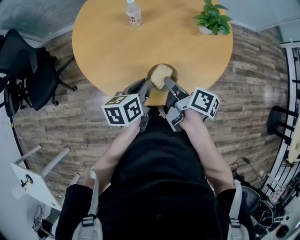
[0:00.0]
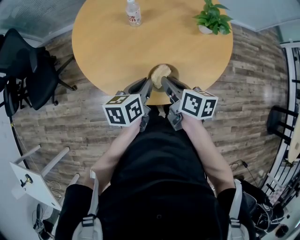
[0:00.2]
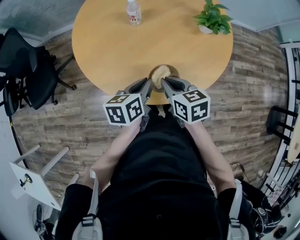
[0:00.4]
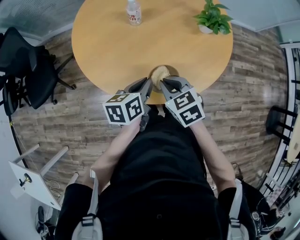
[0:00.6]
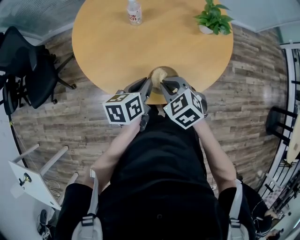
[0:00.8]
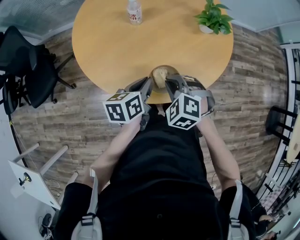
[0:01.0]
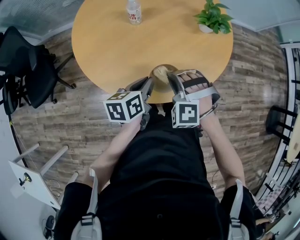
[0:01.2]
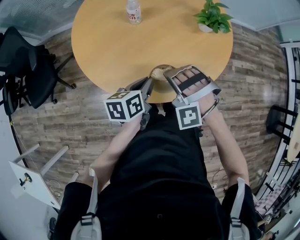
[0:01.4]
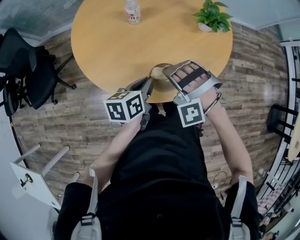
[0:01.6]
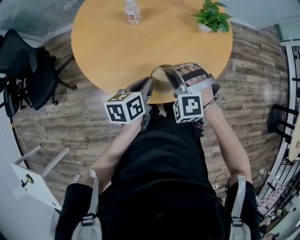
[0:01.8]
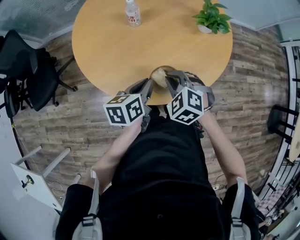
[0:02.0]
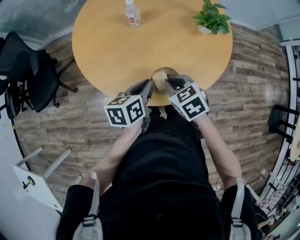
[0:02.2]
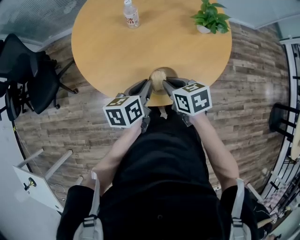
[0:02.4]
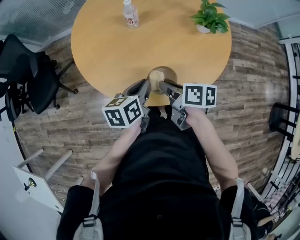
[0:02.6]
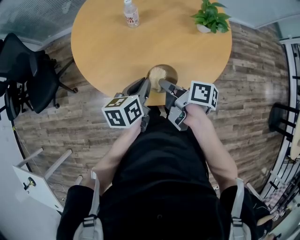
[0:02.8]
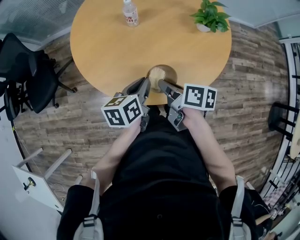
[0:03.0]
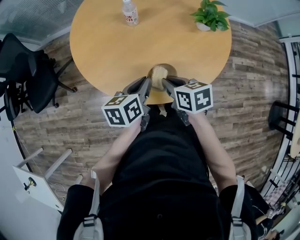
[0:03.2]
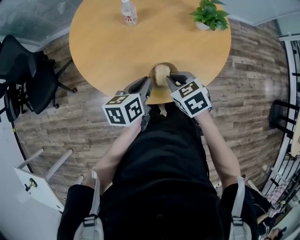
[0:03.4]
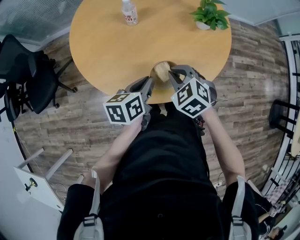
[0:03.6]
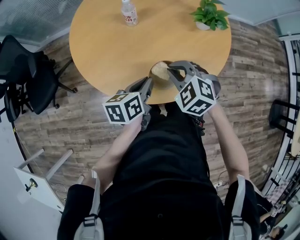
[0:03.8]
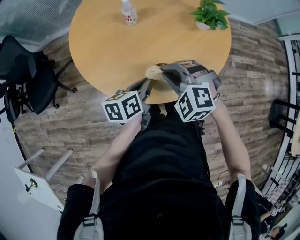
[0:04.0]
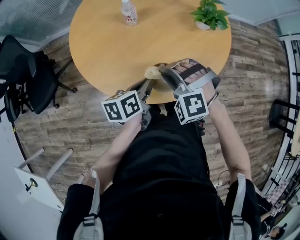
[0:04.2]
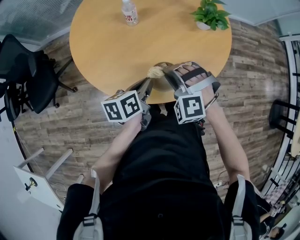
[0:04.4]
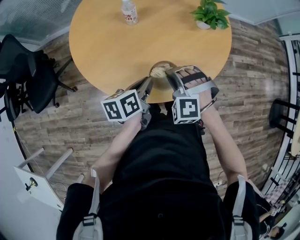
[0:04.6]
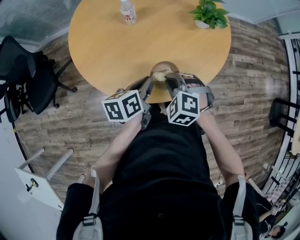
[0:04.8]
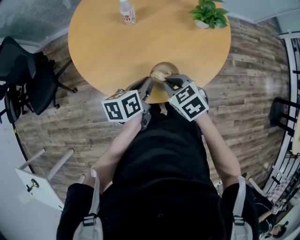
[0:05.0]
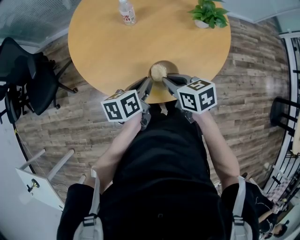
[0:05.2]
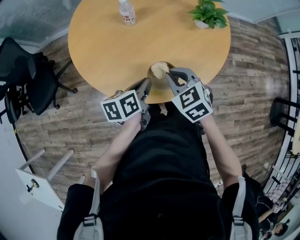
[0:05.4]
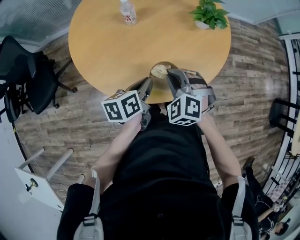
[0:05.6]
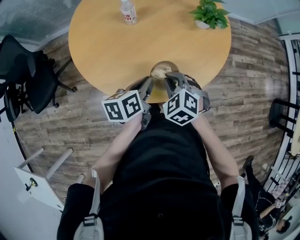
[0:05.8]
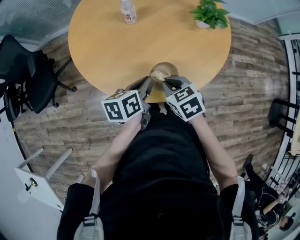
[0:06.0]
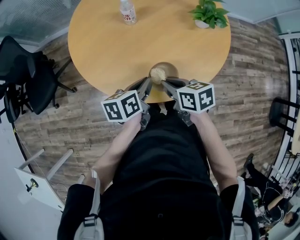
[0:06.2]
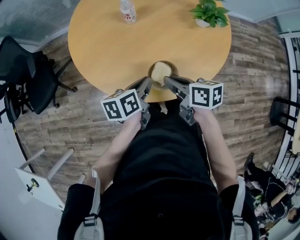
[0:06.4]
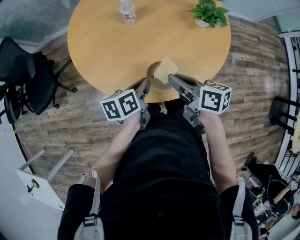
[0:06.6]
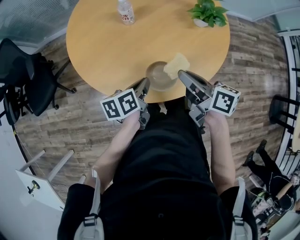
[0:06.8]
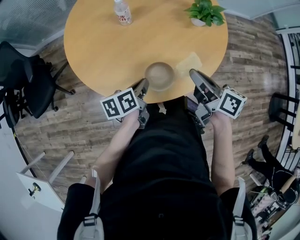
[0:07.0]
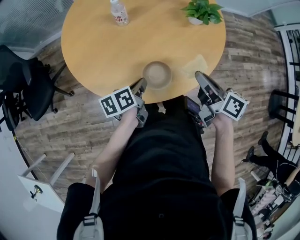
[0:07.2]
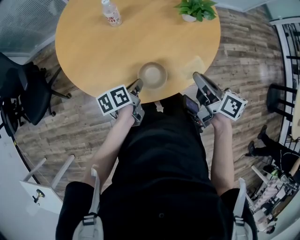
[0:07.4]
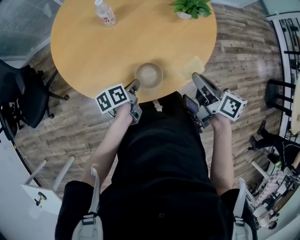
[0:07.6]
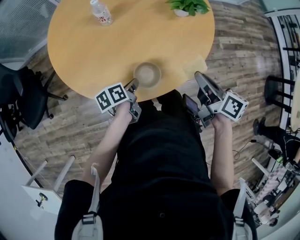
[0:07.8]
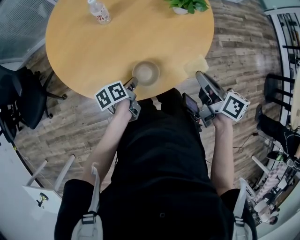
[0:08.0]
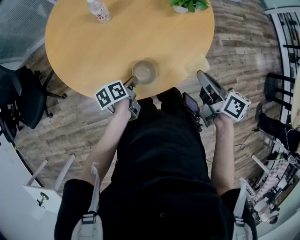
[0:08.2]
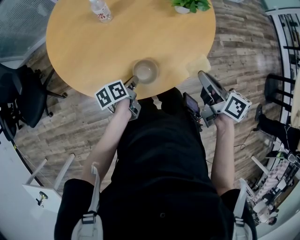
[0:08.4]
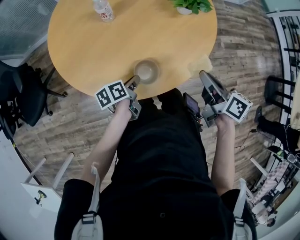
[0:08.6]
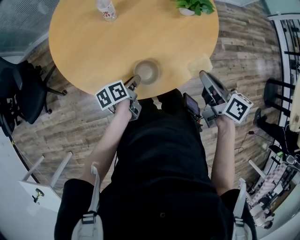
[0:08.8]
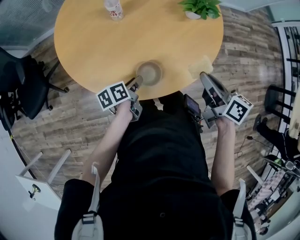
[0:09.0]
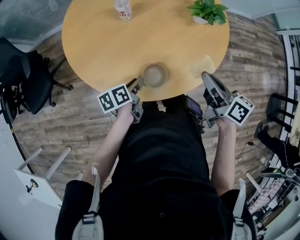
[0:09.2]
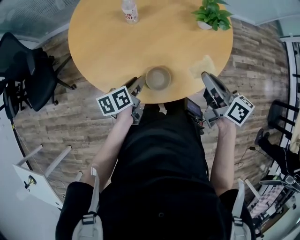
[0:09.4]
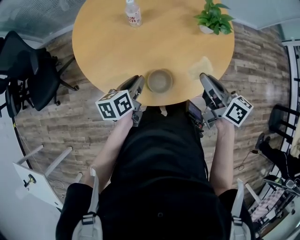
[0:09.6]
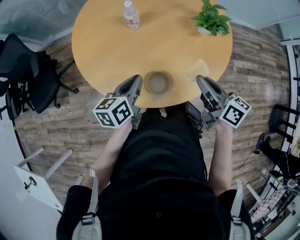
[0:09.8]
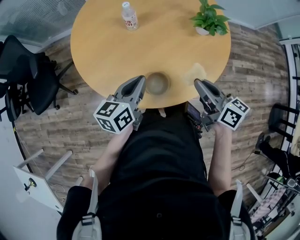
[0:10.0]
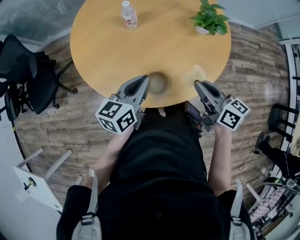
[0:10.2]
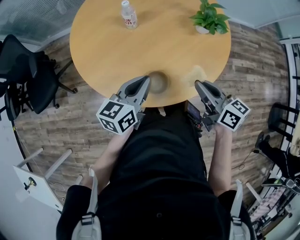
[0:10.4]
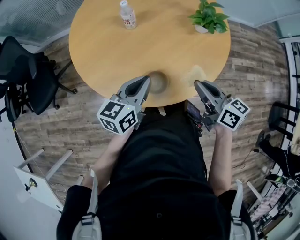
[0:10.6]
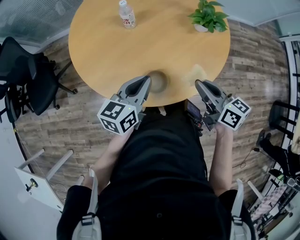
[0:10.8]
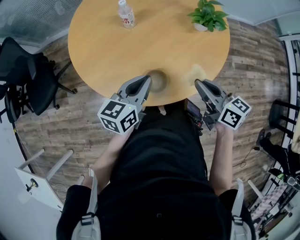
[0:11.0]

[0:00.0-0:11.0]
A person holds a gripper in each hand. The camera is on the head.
0:00.0 to 0:01.6: The right gripper rotates around the line of its fingers by approximately 160 degrees, counterclockwise from behind.
0:01.6 to 0:03.2: The right gripper rolls clockwise, seen from behind, by roughly 120 degrees.
0:03.2 to 0:04.8: The right gripper rotates around the line of its fingers by roughly 70 degrees, counterclockwise from behind.
0:04.8 to 0:06.2: The right gripper twists some 70 degrees clockwise, seen from behind.
0:06.2 to 0:07.8: The right gripper moves to the right, roughly 20 cm, and changes its angle by approximately 40 degrees, while the left gripper goes about 10 cm downward, and rotates approximately 20 degrees.
0:07.8 to 0:09.4: The two grippers go approximately 5 cm to the left. The left gripper opens its fingers.
0:09.4 to 0:11.0: The left gripper shifts some 15 cm upward and to the right, turns by about 40 degrees, and closes.

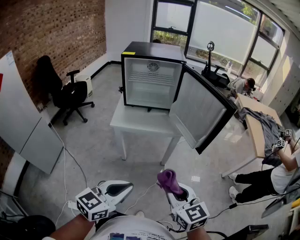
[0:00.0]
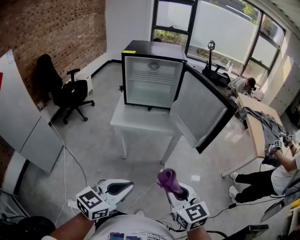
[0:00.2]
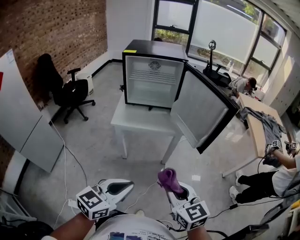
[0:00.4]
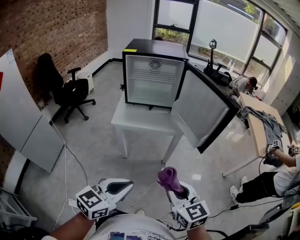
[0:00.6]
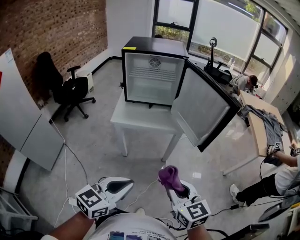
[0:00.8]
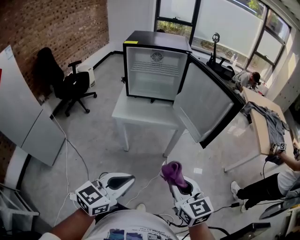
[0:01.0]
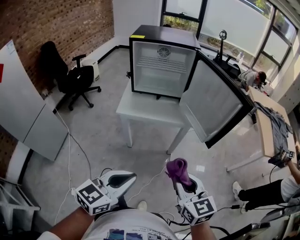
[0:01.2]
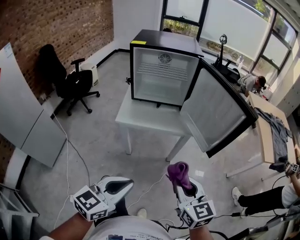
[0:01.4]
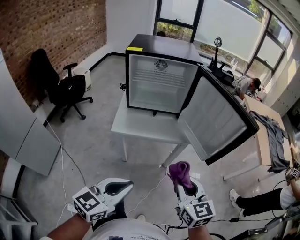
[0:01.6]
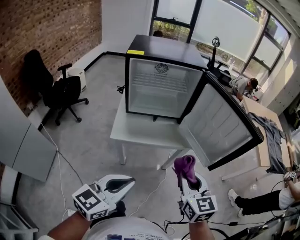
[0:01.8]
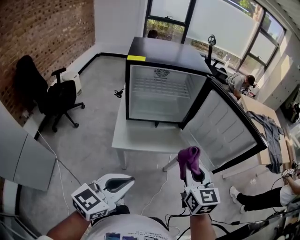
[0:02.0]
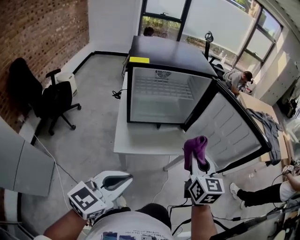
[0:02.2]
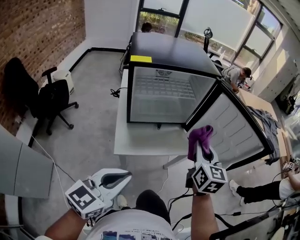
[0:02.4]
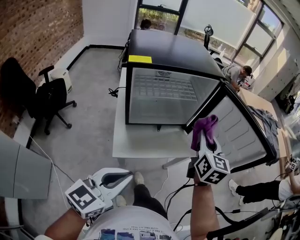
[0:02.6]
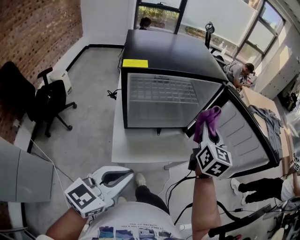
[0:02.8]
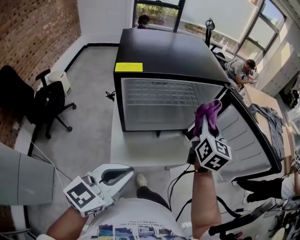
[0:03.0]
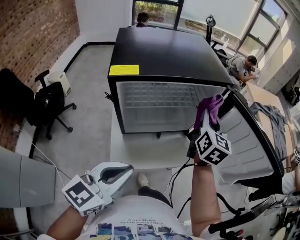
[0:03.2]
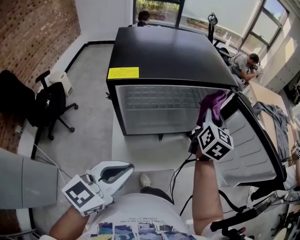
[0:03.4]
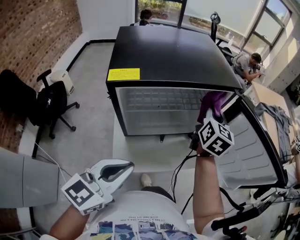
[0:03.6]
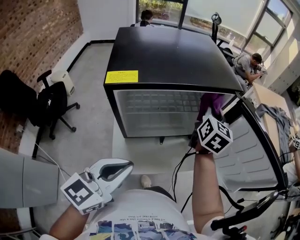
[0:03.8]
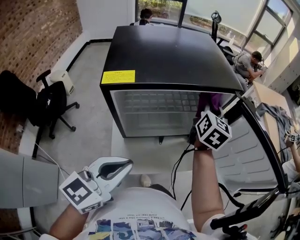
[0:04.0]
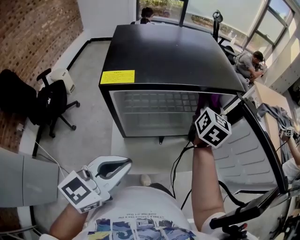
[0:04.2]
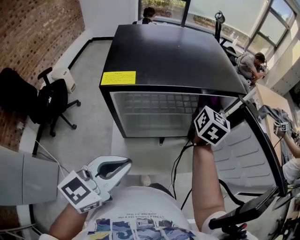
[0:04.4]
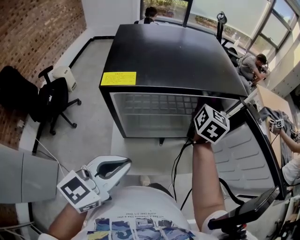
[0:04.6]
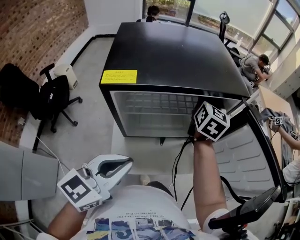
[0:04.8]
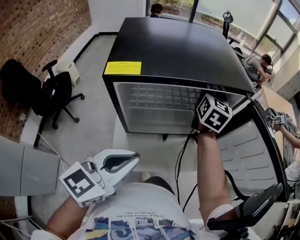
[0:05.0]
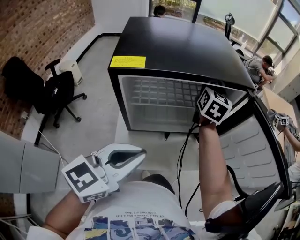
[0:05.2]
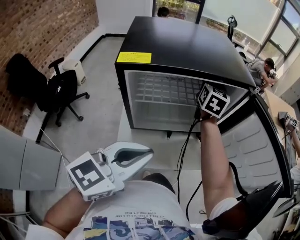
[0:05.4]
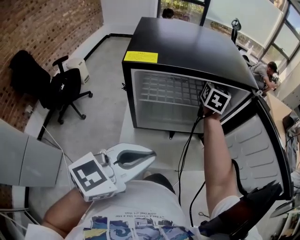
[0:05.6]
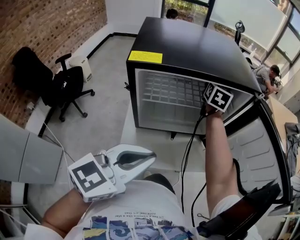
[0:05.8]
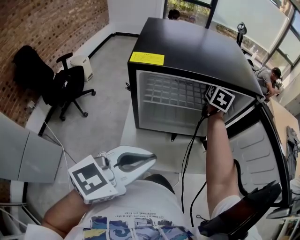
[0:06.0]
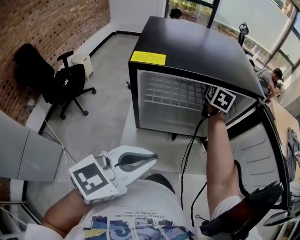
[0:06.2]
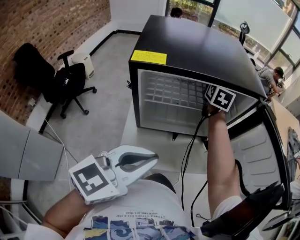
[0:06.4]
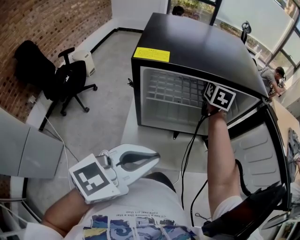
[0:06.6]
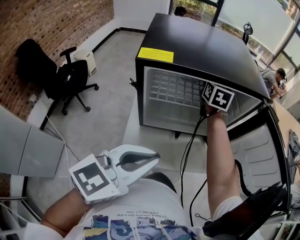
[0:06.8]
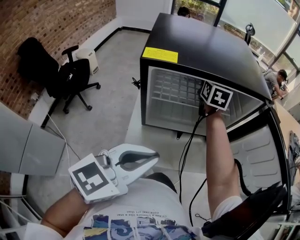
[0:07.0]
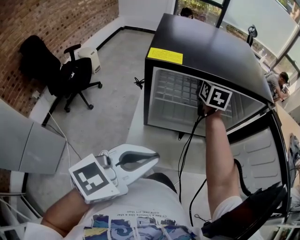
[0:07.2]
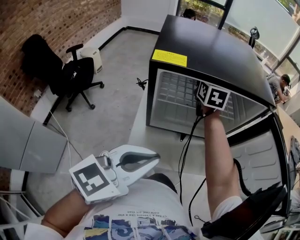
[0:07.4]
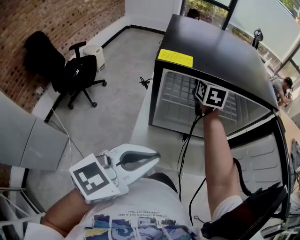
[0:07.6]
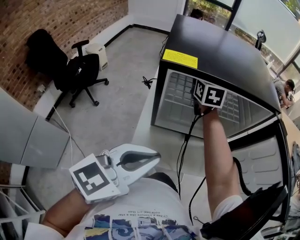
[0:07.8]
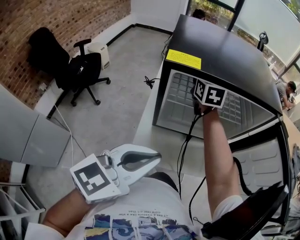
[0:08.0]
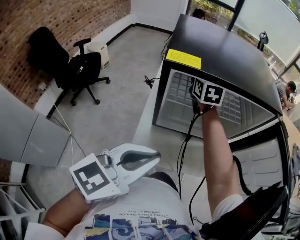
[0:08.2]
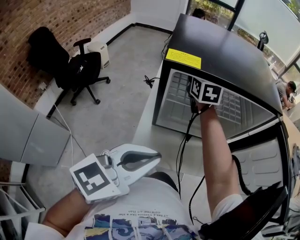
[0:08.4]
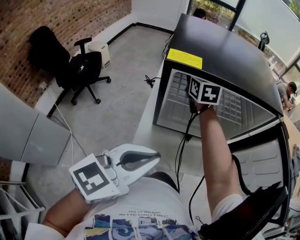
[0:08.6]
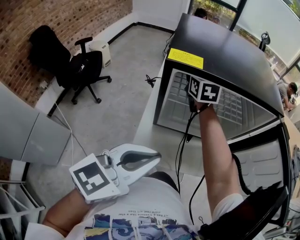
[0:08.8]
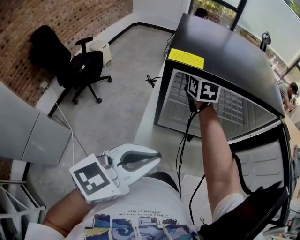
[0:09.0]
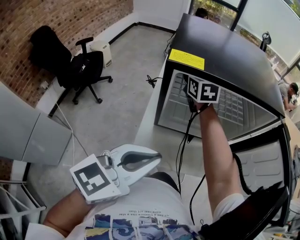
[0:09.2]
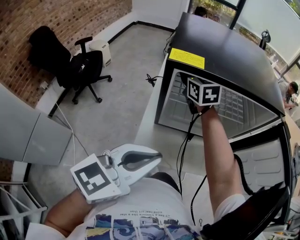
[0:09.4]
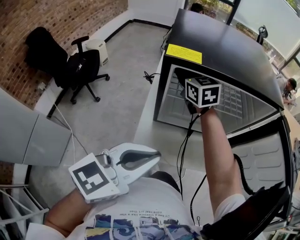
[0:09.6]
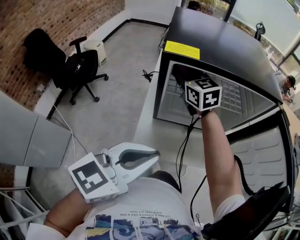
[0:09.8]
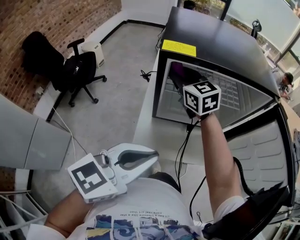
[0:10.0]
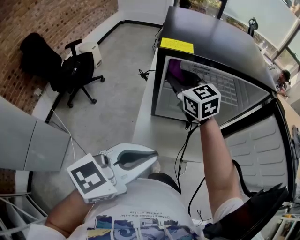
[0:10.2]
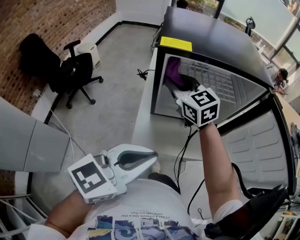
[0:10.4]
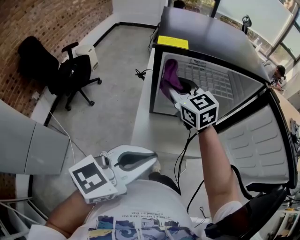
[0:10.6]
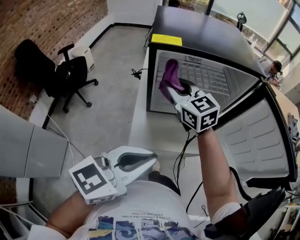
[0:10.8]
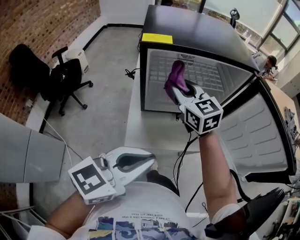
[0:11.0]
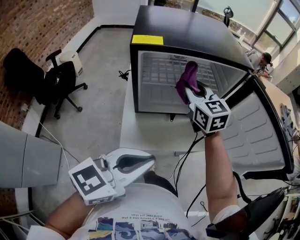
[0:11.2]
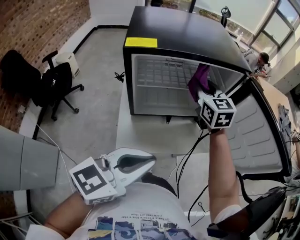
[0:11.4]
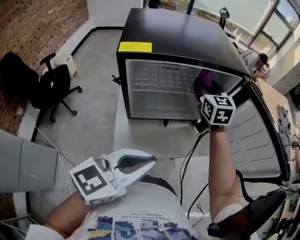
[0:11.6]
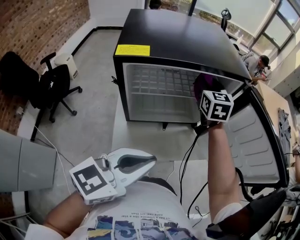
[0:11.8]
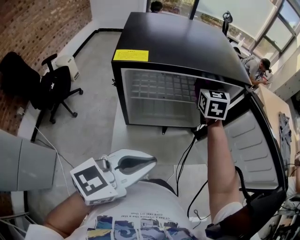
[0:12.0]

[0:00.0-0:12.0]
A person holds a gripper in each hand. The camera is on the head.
0:00.0 to 0:01.6: The left gripper shifts roughly 10 cm forward and to the left. Meanwhile the right gripper travels forward by some 10 cm.
0:01.6 to 0:03.0: Both grippers travel together forward and to the left, approximately 35 cm. The right gripper swivels roughly 40 degrees.
0:03.0 to 0:04.4: The right gripper travels forward and to the left by some 15 cm, while the left gripper travels forward by approximately 5 cm.
0:04.4 to 0:06.0: The right gripper is displaced forward and to the left by about 10 cm.
0:06.0 to 0:07.6: The right gripper goes roughly 15 cm to the left and backward, and turns by some 20 degrees.
0:07.6 to 0:09.0: The right gripper travels to the left by about 10 cm.
0:09.0 to 0:10.4: The right gripper shifts some 15 cm backward, and swivels approximately 20 degrees.
0:10.4 to 0:12.0: The left gripper shifts by approximately 10 cm. Meanwhile the right gripper shifts by about 25 cm, and changes its angle by about 40 degrees.

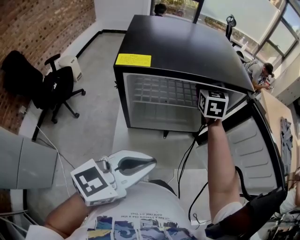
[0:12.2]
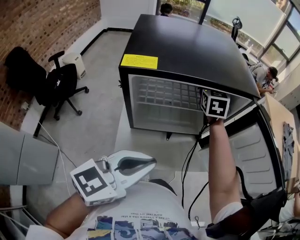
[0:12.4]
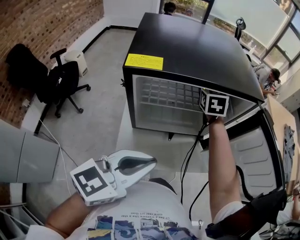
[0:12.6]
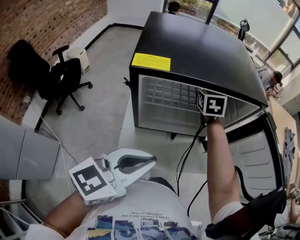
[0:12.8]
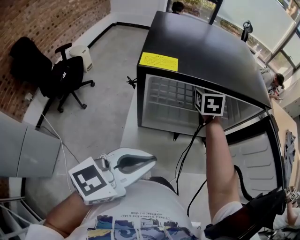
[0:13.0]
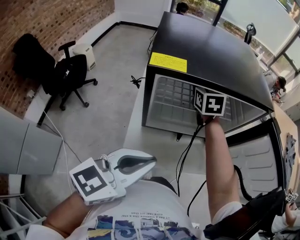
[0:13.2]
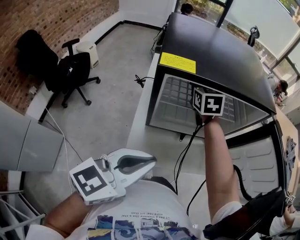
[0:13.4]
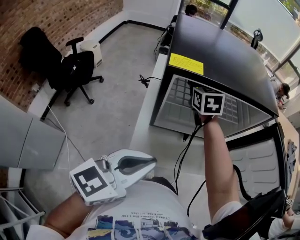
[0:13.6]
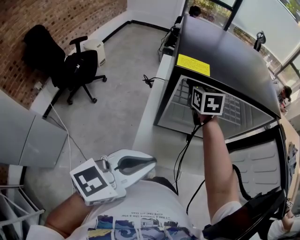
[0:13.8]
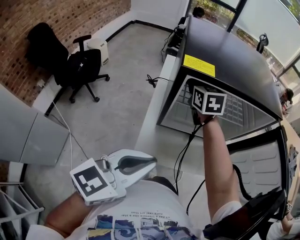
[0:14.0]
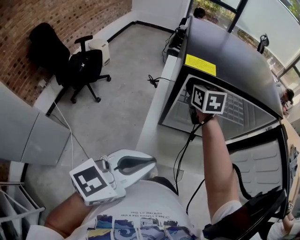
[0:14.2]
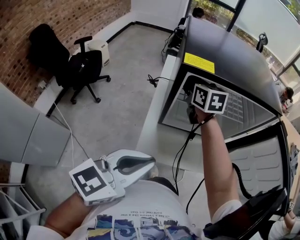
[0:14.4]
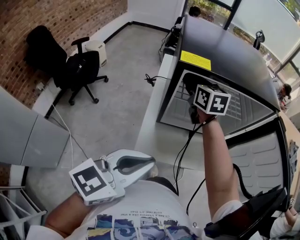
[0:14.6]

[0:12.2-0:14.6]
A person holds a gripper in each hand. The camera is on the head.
0:12.2 to 0:13.4: The left gripper heads to the left, covering approximately 5 cm. Meanwhile the right gripper moves to the left, about 15 cm.
0:13.4 to 0:14.6: The right gripper shifts approximately 10 cm to the left and backward.
